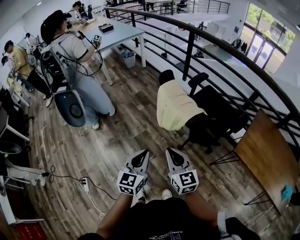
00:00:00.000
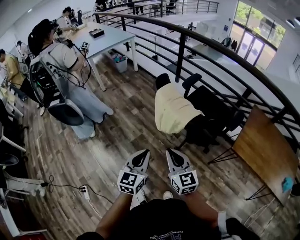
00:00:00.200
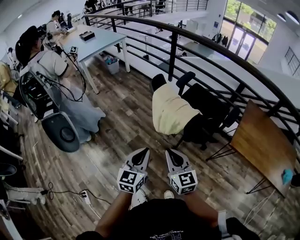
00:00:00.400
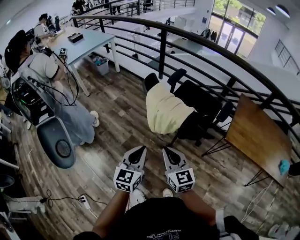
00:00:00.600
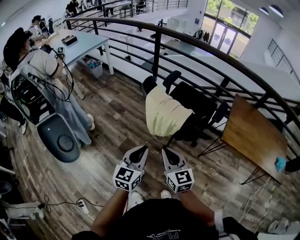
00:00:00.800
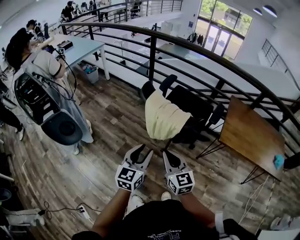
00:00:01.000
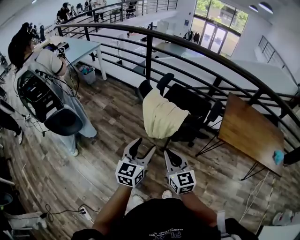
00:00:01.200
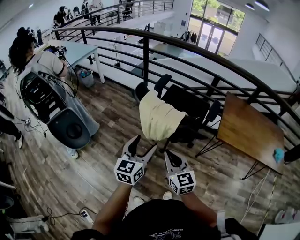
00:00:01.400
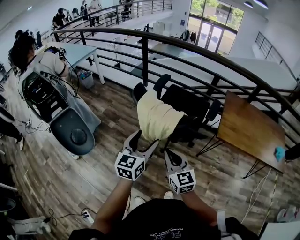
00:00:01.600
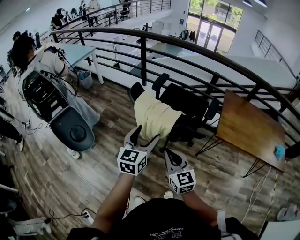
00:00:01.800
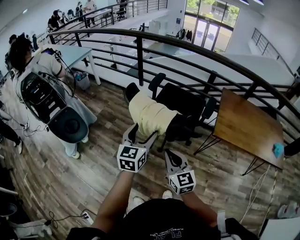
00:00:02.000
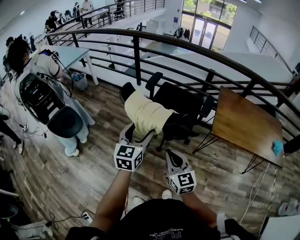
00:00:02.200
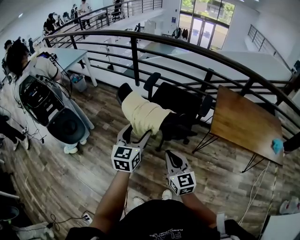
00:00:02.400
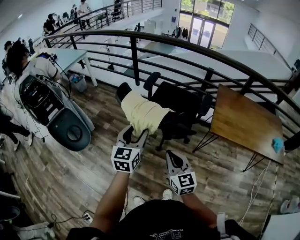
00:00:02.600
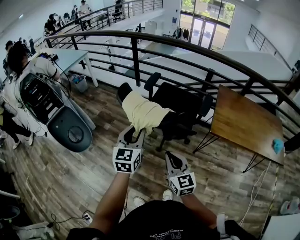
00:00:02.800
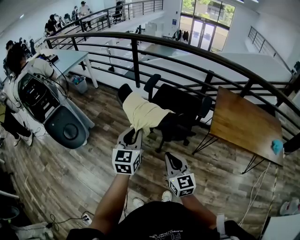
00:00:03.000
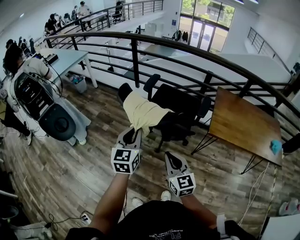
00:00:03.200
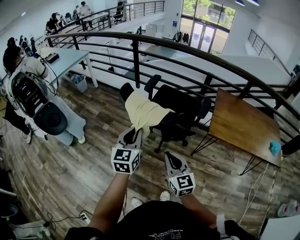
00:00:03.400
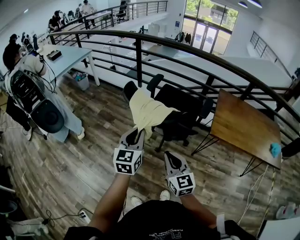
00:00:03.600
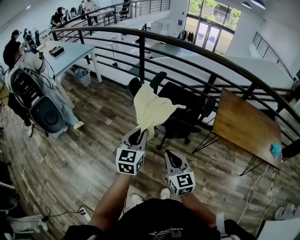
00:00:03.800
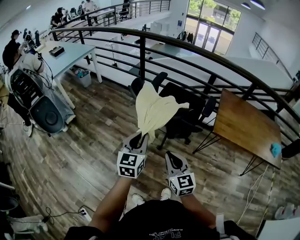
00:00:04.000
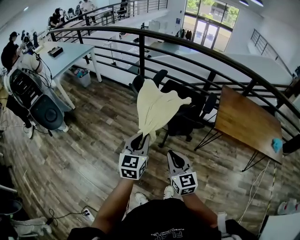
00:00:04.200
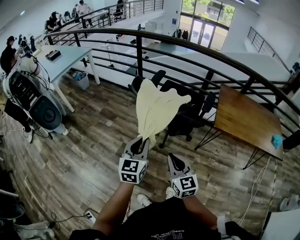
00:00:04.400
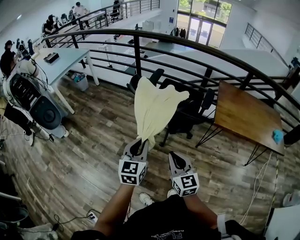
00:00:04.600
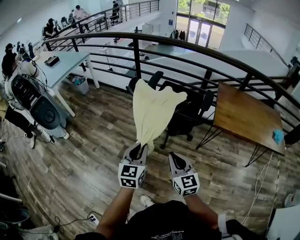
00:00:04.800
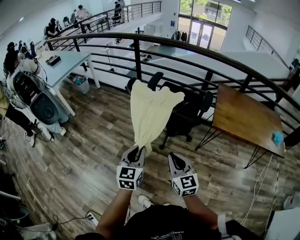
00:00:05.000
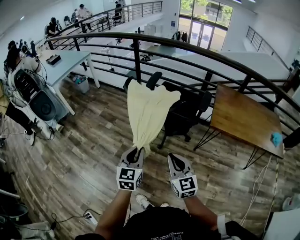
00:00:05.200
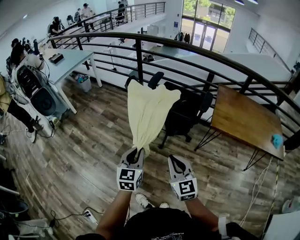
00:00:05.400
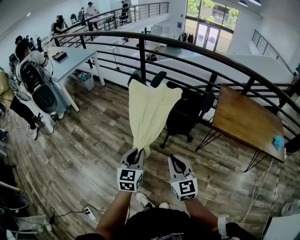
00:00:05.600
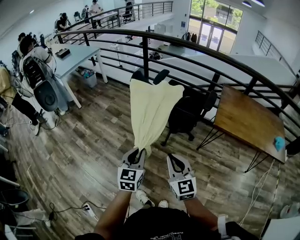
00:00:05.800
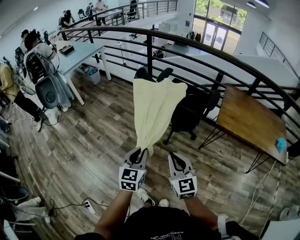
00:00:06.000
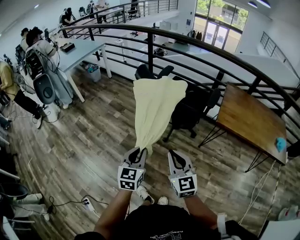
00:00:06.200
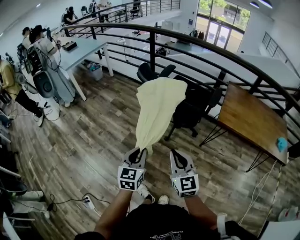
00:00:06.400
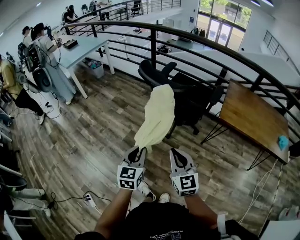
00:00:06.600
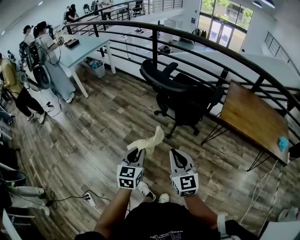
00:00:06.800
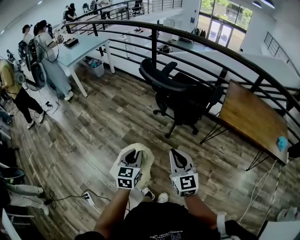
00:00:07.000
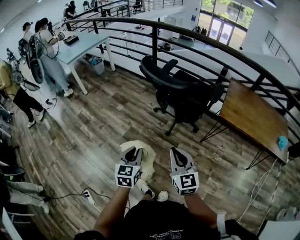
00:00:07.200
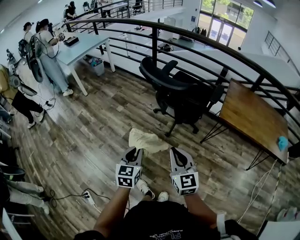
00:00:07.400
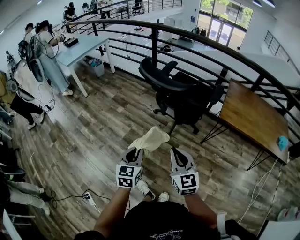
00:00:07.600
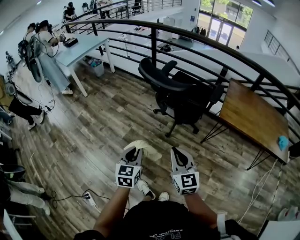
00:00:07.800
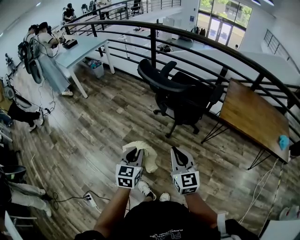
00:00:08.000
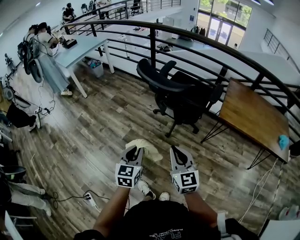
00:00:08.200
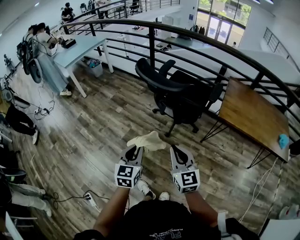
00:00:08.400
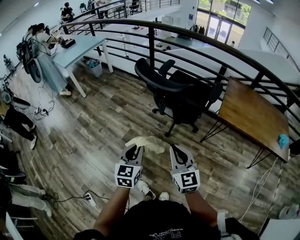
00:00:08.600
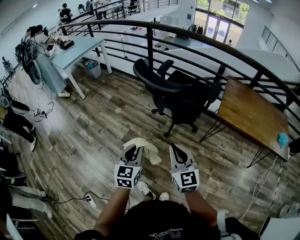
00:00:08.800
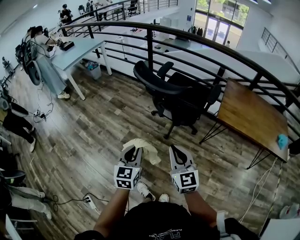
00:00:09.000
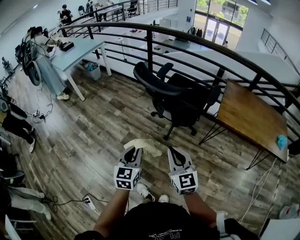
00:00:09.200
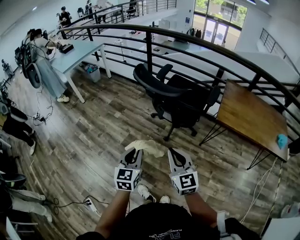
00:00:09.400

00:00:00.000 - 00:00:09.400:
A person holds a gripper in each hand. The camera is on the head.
00:00:00.000 - 00:00:01.600: The left gripper shifts some 15 cm forward and upward, changes its angle by approximately 30 degrees, and opens its fingers, while the right gripper rotates approximately 20 degrees.
00:00:01.600 - 00:00:03.200: The left gripper closes, while the right gripper shifts about 5 cm to the right.
00:00:03.200 - 00:00:04.800: The right gripper heads backward, covering some 5 cm; the left gripper moves backward and downward, approximately 10 cm.
00:00:04.800 - 00:00:06.200: Both grippers travel together backward, approximately 10 cm.
00:00:06.200 - 00:00:09.400: There are only small adjustments of the grippers.

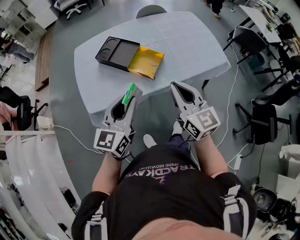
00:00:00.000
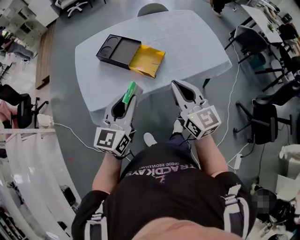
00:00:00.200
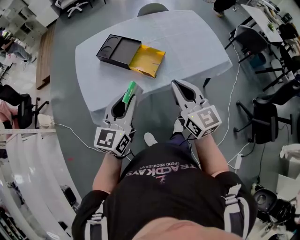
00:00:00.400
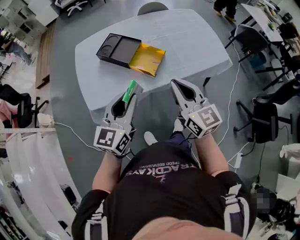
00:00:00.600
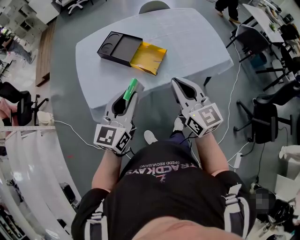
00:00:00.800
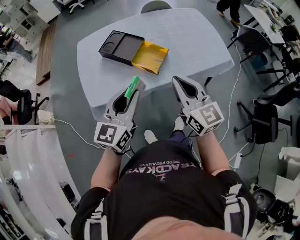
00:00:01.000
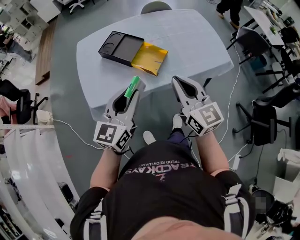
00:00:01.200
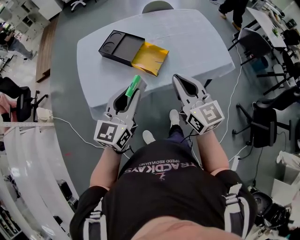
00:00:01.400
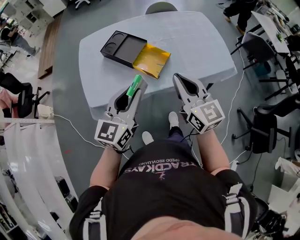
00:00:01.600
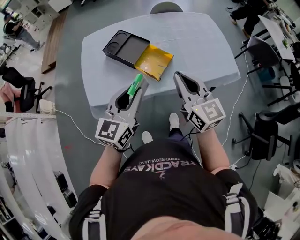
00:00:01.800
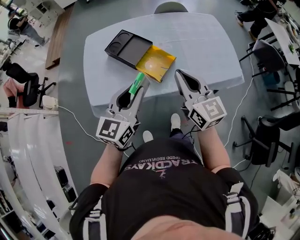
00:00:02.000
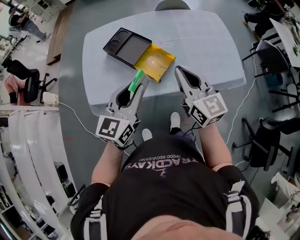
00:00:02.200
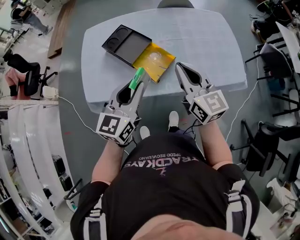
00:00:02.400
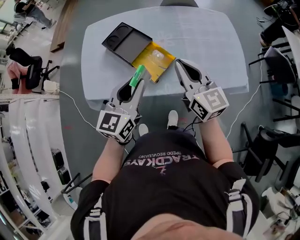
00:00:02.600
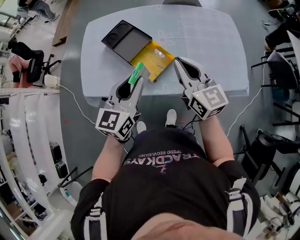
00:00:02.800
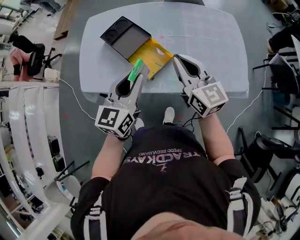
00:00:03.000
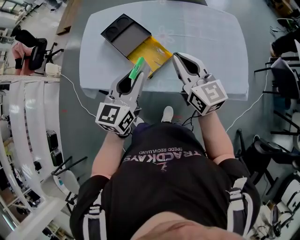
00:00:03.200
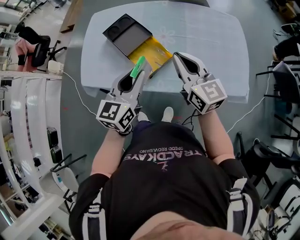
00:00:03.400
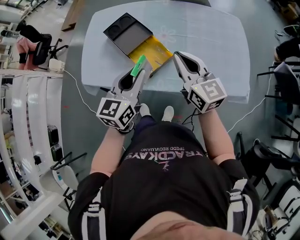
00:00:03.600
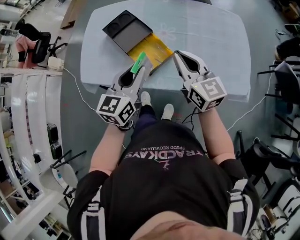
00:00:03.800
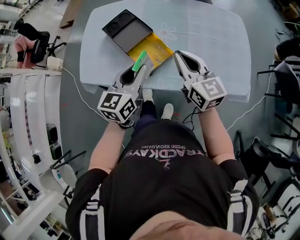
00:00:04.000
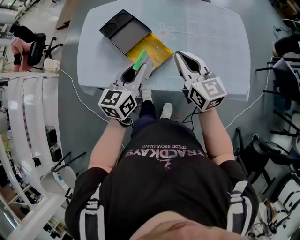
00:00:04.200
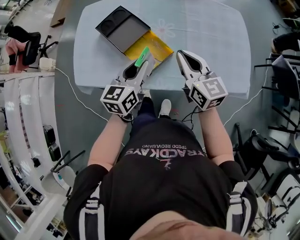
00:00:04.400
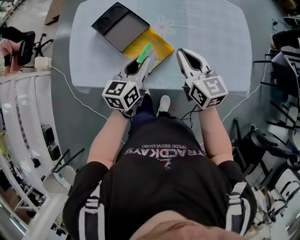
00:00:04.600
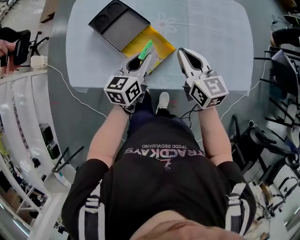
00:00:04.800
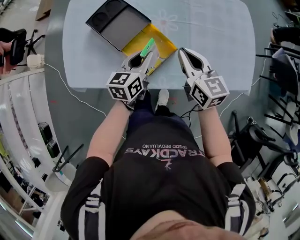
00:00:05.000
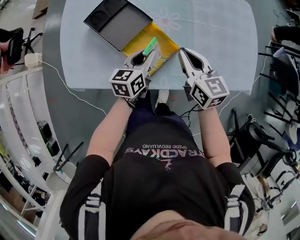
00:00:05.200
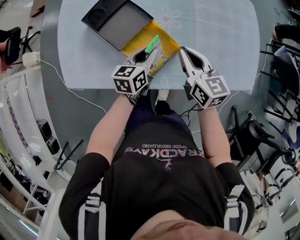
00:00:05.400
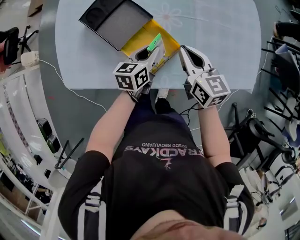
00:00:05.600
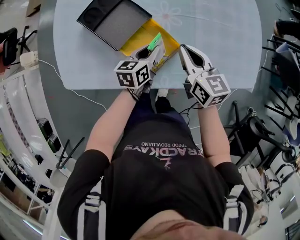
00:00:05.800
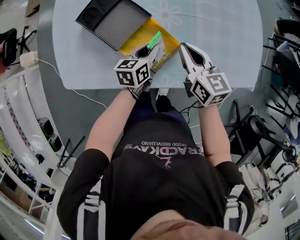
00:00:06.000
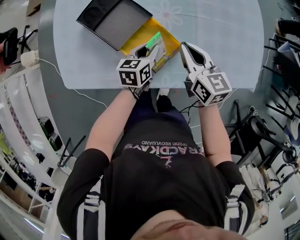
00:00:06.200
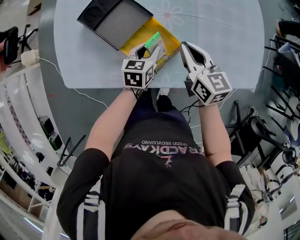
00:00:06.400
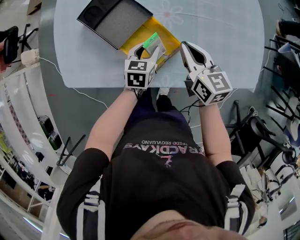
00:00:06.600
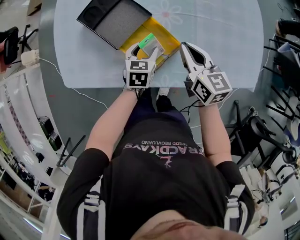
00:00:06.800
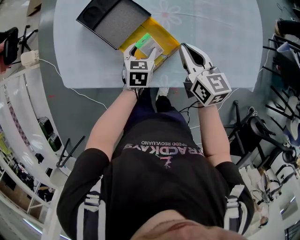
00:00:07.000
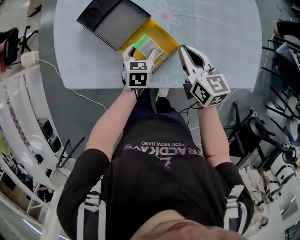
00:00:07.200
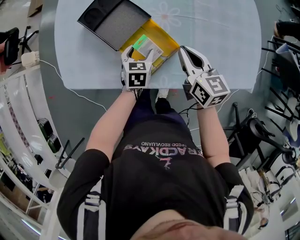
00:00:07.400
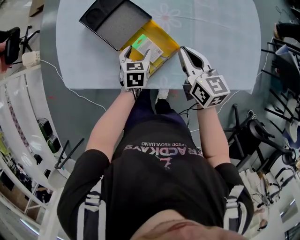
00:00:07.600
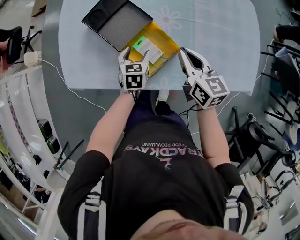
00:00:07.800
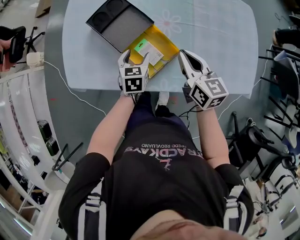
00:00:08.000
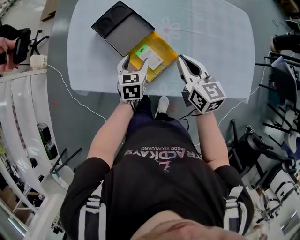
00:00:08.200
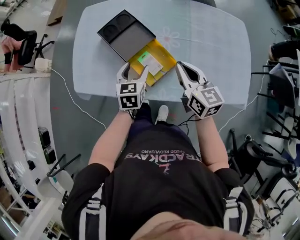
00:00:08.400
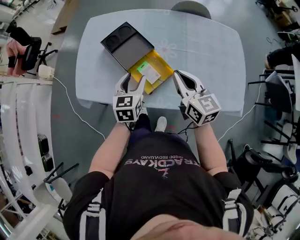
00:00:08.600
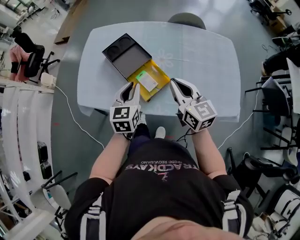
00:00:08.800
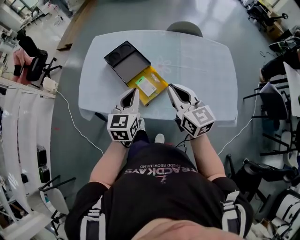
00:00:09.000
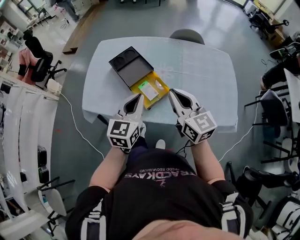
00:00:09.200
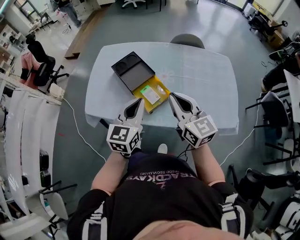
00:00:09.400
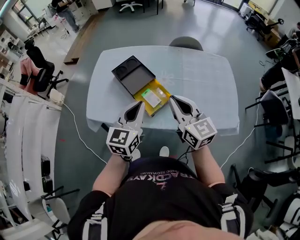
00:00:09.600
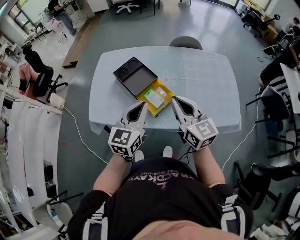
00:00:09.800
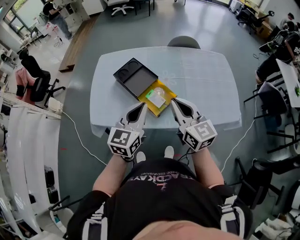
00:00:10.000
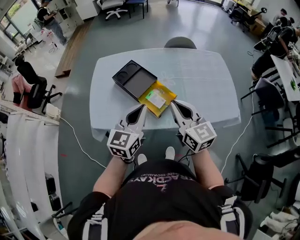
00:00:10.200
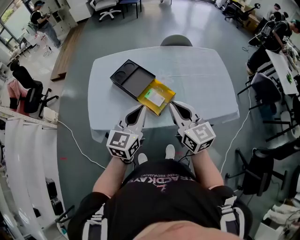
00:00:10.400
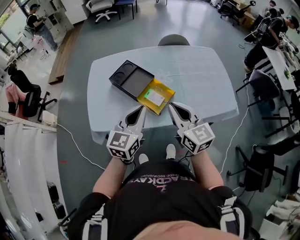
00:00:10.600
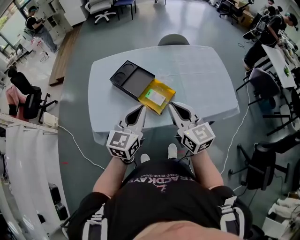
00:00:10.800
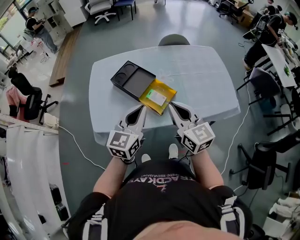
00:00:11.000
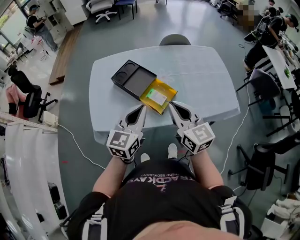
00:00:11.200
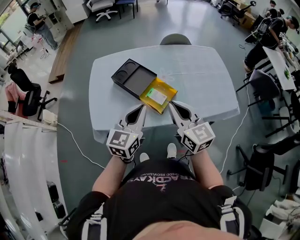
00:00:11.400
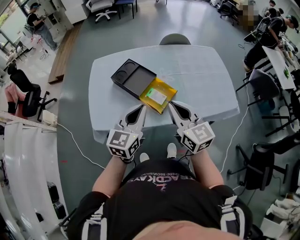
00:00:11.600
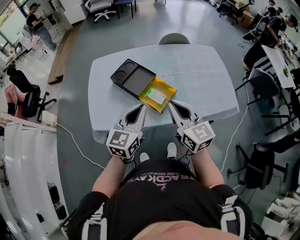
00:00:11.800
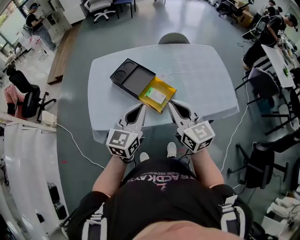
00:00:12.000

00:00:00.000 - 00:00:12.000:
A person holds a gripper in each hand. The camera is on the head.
00:00:00.000 - 00:00:01.600: The grippers move only a little.
00:00:01.600 - 00:00:03.000: The right gripper moves forward and to the right, some 20 cm. Meanwhile the left gripper is displaced to the right and forward by some 15 cm.
00:00:03.000 - 00:00:04.400: The right gripper travels downward by roughly 5 cm. Meanwhile the left gripper is displaced downward and forward by about 10 cm.
00:00:04.400 - 00:00:06.000: The left gripper is displaced downward and forward by approximately 20 cm, and changes its angle by roughly 20 degrees. The right gripper heads downward and forward, covering about 15 cm.
00:00:06.000 - 00:00:07.600: The left gripper travels to the left by roughly 5 cm, swivels about 30 degrees, and opens up.
00:00:07.600 - 00:00:09.000: The left gripper goes some 30 cm upward and backward, tips its fingers upward by about 30 degrees, and closes up, while the right gripper is displaced upward and backward by roughly 20 cm, and swivels about 20 degrees.
00:00:09.000 - 00:00:10.400: The right gripper moves to the left and backward, about 10 cm, while the left gripper goes about 10 cm to the left, upward and backward, and turns by roughly 20 degrees.
00:00:10.400 - 00:00:12.000: The grippers move only a little.

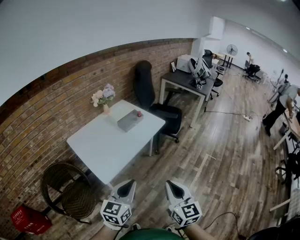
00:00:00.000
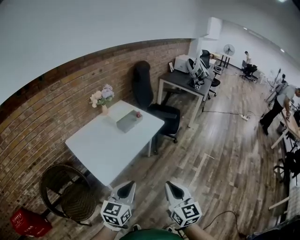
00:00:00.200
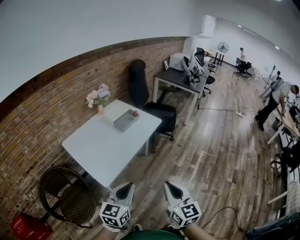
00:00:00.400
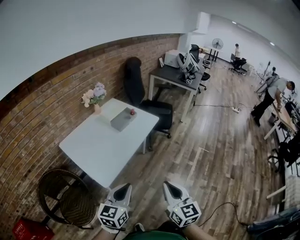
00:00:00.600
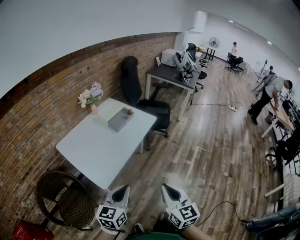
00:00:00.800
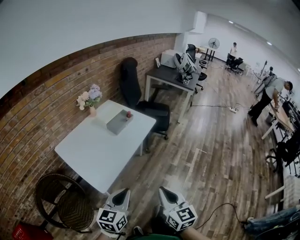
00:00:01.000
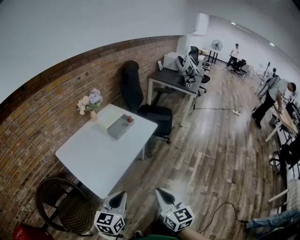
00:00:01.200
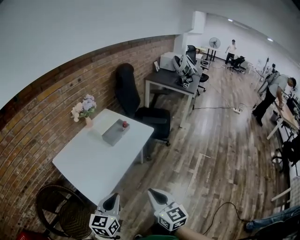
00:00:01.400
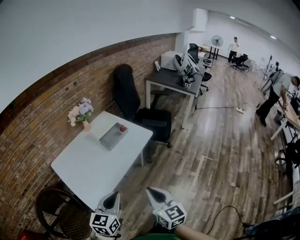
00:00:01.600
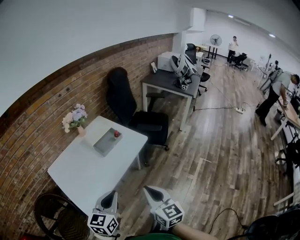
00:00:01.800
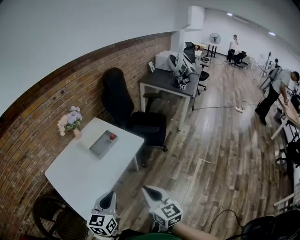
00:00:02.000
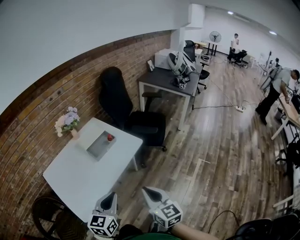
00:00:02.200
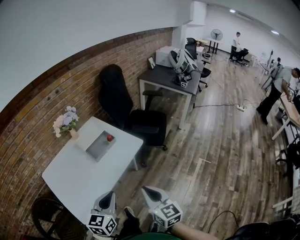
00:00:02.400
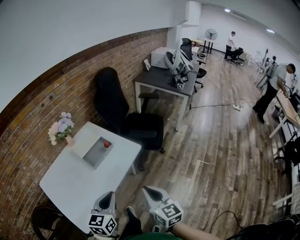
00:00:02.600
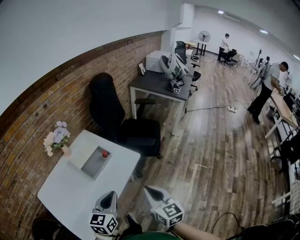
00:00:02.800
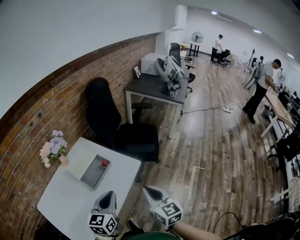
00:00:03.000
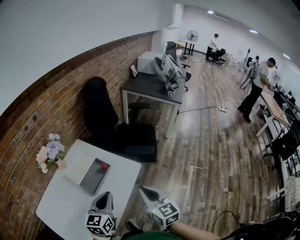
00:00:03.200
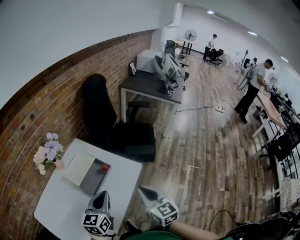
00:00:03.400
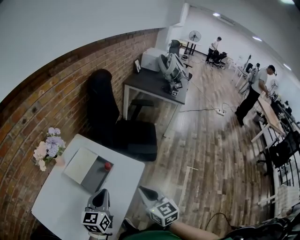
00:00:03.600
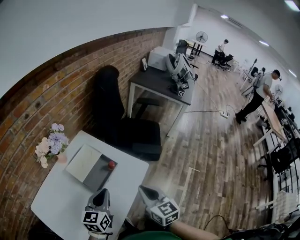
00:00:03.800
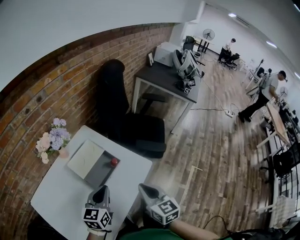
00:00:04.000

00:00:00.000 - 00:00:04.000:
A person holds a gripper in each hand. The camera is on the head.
00:00:00.000 - 00:00:01.400: The left gripper travels forward, to the left and downward by approximately 10 cm. Meanwhile the right gripper heads forward and to the left, covering roughly 10 cm.
00:00:01.400 - 00:00:02.600: Both grippers travel together forward and to the right, approximately 25 cm.
00:00:02.600 - 00:00:04.000: Both grippers move forward and to the left, roughly 25 cm.
